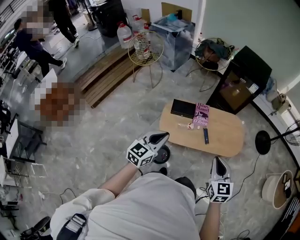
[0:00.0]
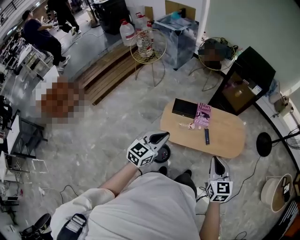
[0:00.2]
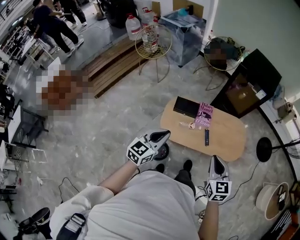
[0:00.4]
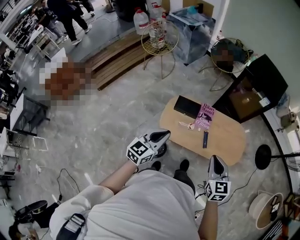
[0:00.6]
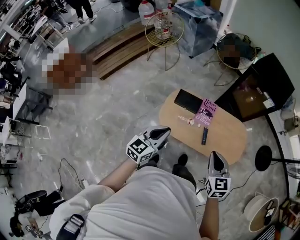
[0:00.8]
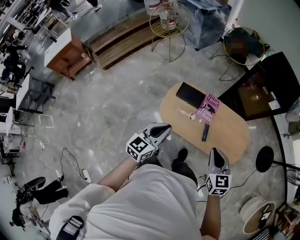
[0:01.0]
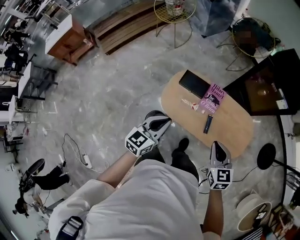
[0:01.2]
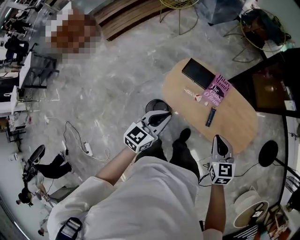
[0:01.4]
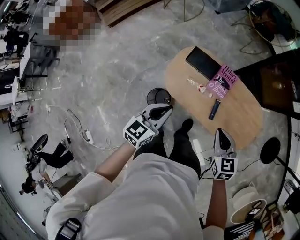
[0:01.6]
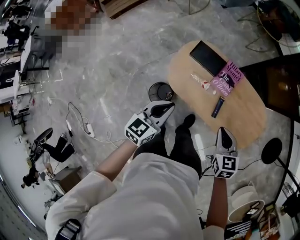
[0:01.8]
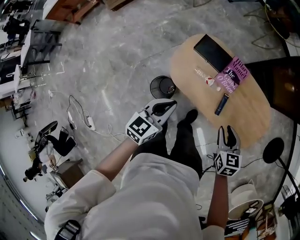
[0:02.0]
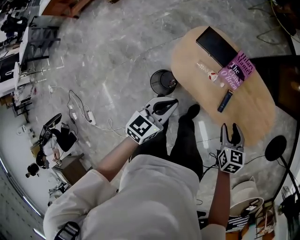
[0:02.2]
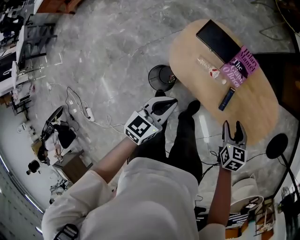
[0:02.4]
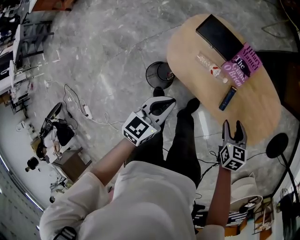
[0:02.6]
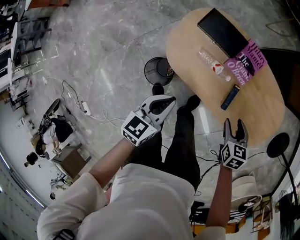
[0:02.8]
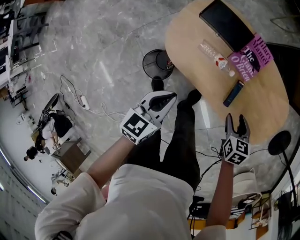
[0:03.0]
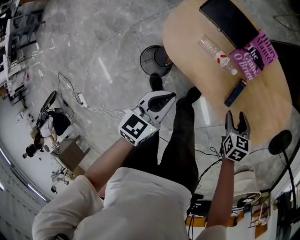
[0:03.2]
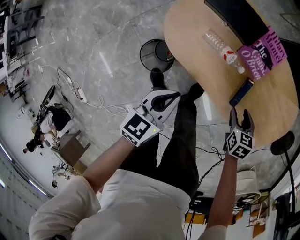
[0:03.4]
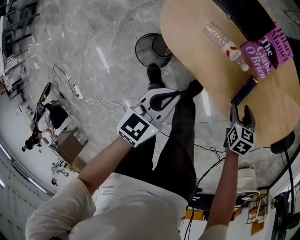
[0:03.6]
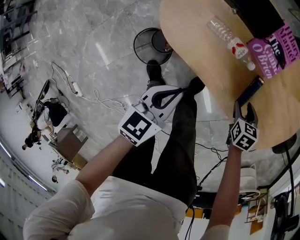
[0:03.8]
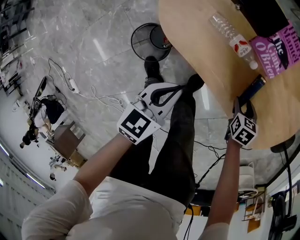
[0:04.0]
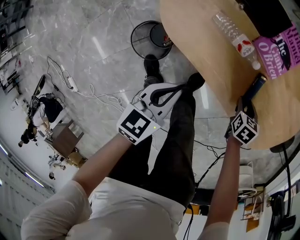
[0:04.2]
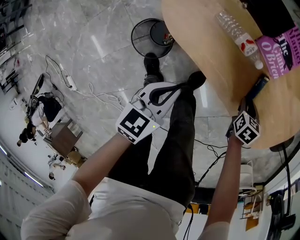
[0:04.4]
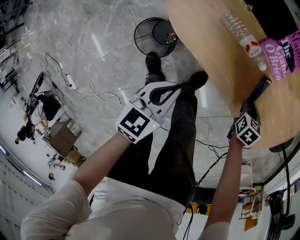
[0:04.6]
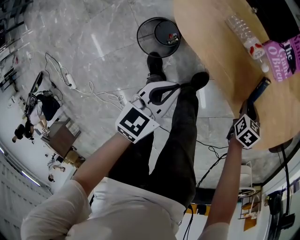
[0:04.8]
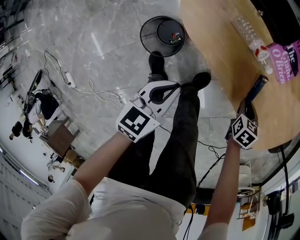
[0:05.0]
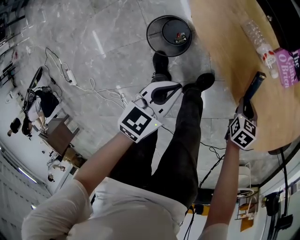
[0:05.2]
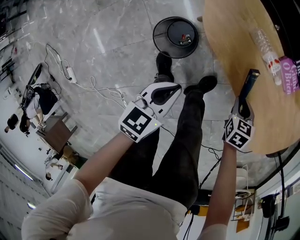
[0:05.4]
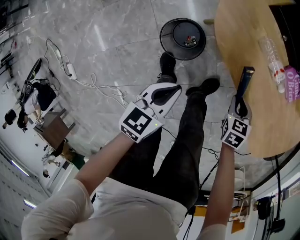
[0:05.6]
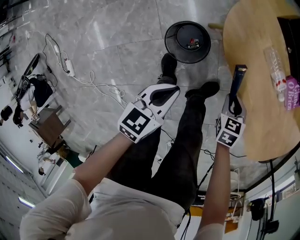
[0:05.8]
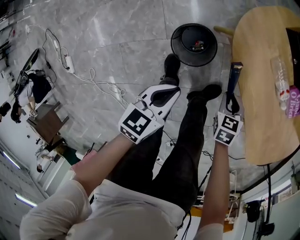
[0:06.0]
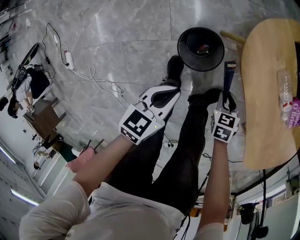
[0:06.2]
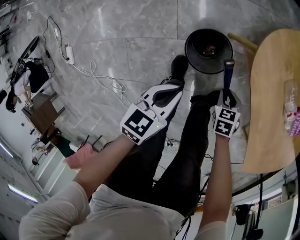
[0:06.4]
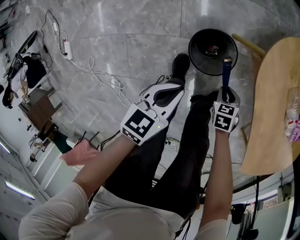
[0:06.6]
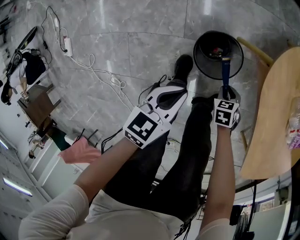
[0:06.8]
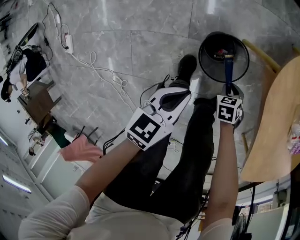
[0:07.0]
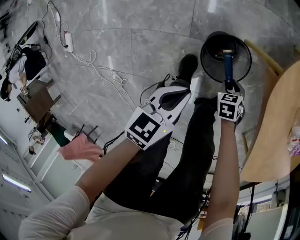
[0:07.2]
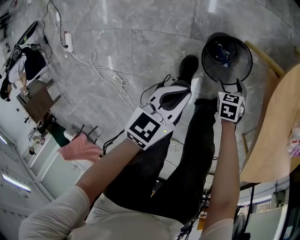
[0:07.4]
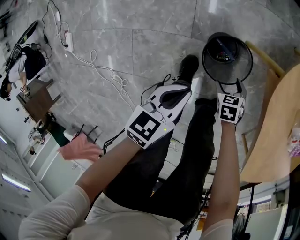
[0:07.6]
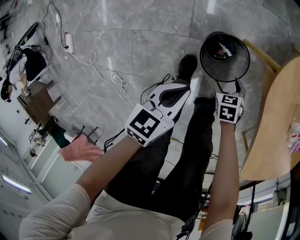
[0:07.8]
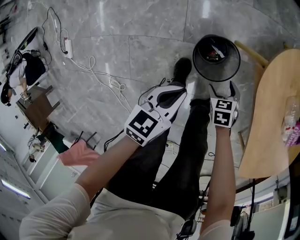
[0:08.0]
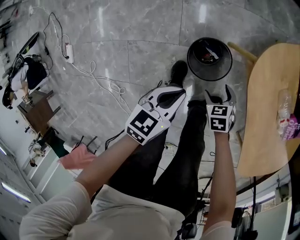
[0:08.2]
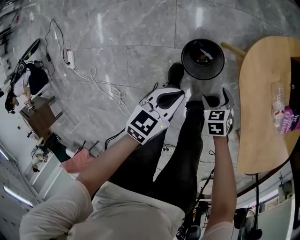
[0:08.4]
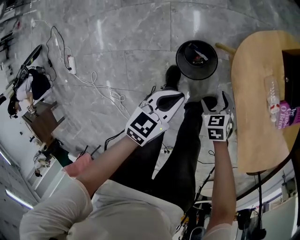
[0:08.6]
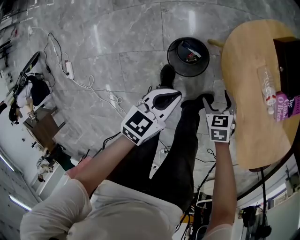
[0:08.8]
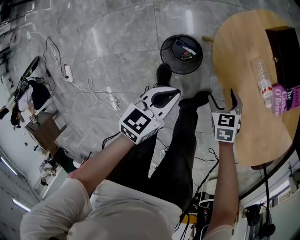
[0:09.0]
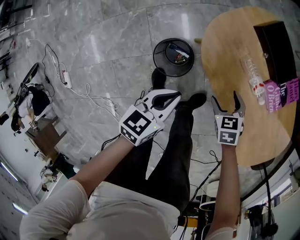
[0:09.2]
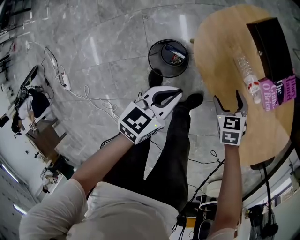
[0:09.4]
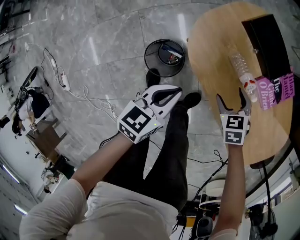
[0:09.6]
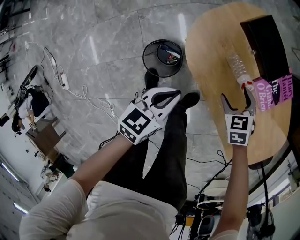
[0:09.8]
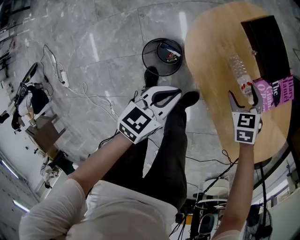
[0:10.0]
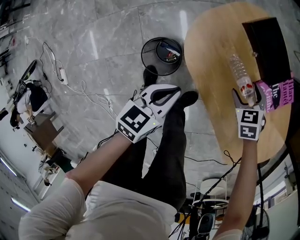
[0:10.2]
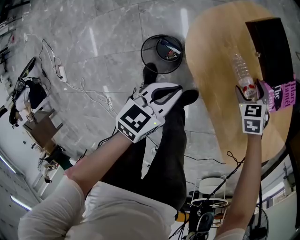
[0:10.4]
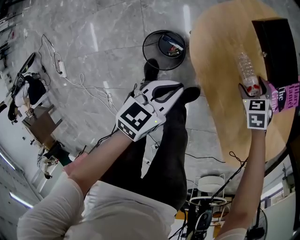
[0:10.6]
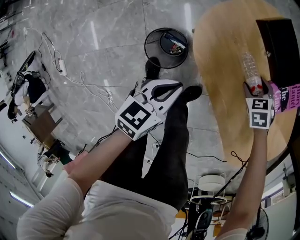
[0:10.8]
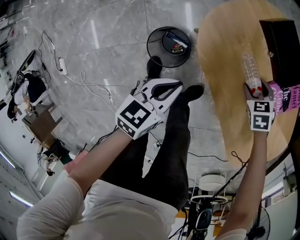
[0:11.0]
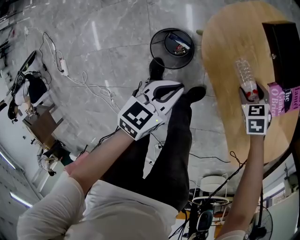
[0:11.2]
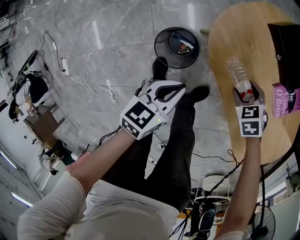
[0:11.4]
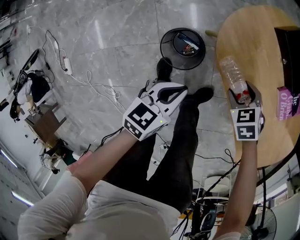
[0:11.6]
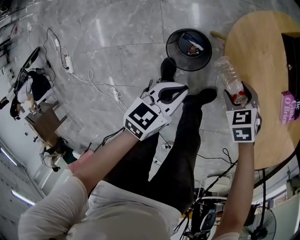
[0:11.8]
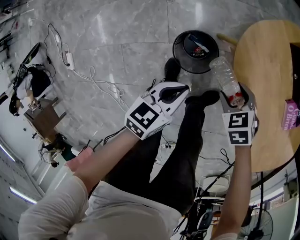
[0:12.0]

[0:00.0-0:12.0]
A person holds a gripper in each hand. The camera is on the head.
0:00.0 to 0:01.6: The left gripper is displaced downward by some 15 cm, and turns by roughly 30 degrees. The right gripper changes place by roughly 30 cm, and swivels some 40 degrees.
0:01.6 to 0:03.0: The grippers both shift downward by roughly 25 cm. The right gripper swivels about 20 degrees, and opens its fingers.
0:03.0 to 0:04.4: Both grippers move downward, about 20 cm.
0:04.4 to 0:06.0: The right gripper changes place by about 30 cm, and turns by roughly 30 degrees, while the left gripper ends up some 20 cm from where it was.
0:06.0 to 0:07.6: The left gripper moves some 15 cm, while the right gripper shifts by about 25 cm, turns by approximately 20 degrees, and opens its fingers.
0:07.6 to 0:09.0: The right gripper moves upward and to the right, approximately 25 cm; the left gripper travels to the right and upward by some 20 cm.
0:09.0 to 0:10.4: The left gripper heads to the right and forward, covering about 10 cm, while the right gripper heads to the right and forward, covering some 20 cm.
0:10.4 to 0:12.0: The left gripper shifts by about 15 cm. The right gripper changes place by some 25 cm.

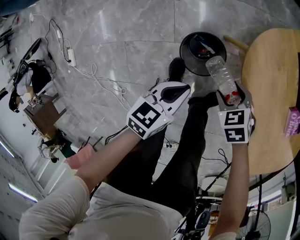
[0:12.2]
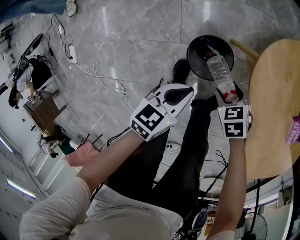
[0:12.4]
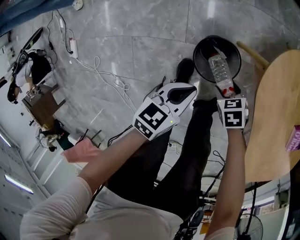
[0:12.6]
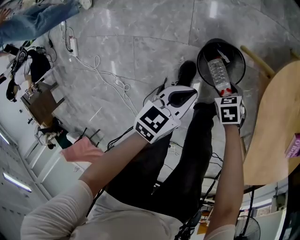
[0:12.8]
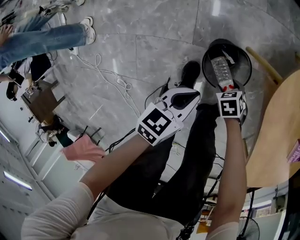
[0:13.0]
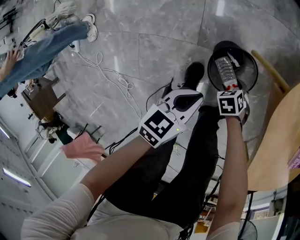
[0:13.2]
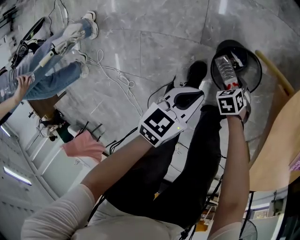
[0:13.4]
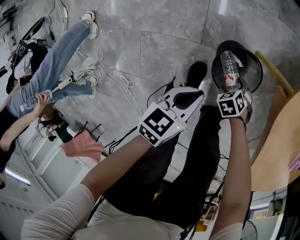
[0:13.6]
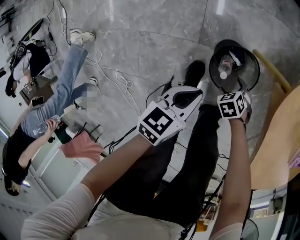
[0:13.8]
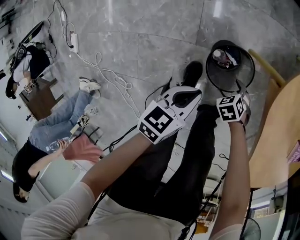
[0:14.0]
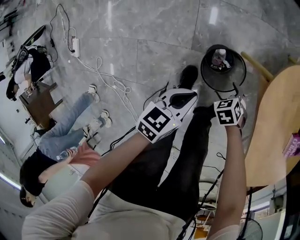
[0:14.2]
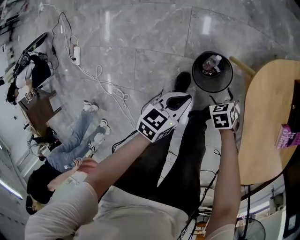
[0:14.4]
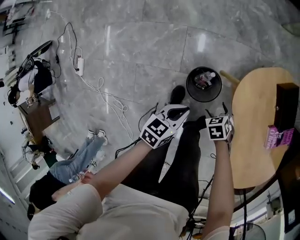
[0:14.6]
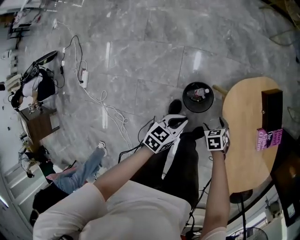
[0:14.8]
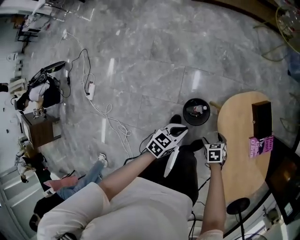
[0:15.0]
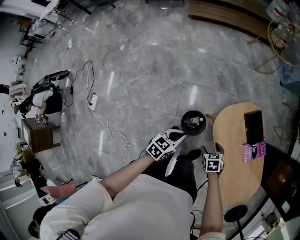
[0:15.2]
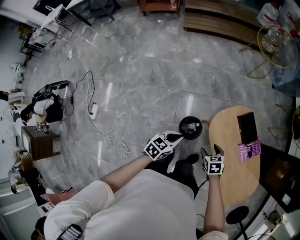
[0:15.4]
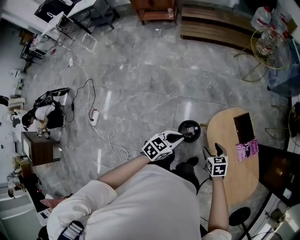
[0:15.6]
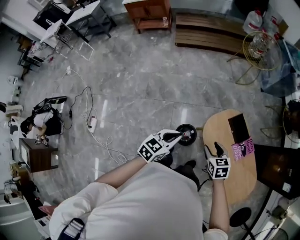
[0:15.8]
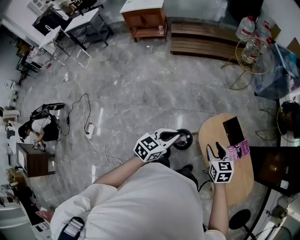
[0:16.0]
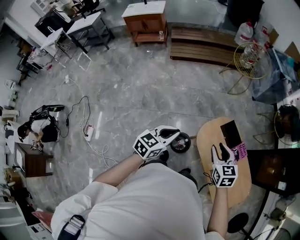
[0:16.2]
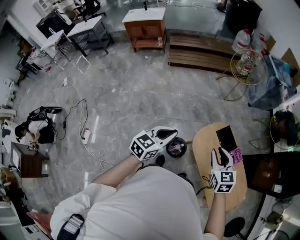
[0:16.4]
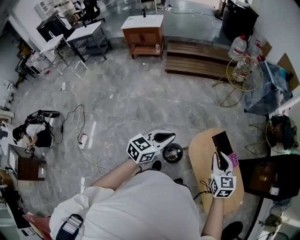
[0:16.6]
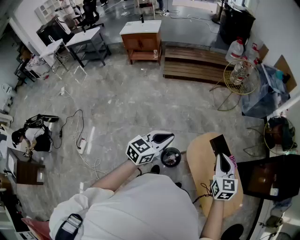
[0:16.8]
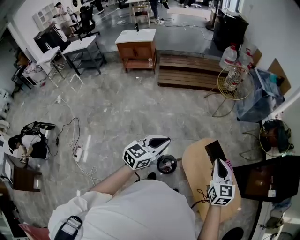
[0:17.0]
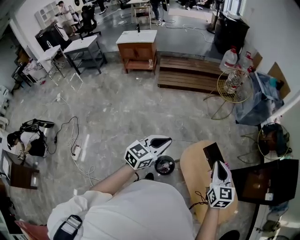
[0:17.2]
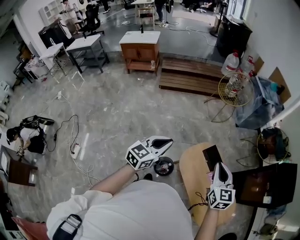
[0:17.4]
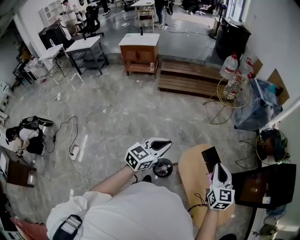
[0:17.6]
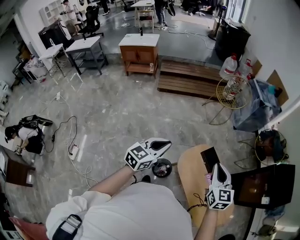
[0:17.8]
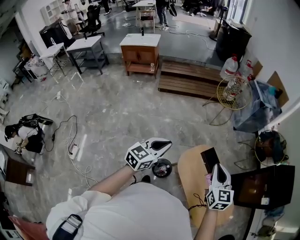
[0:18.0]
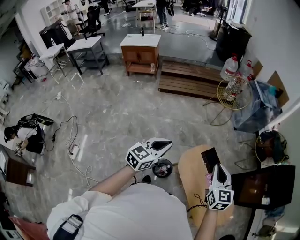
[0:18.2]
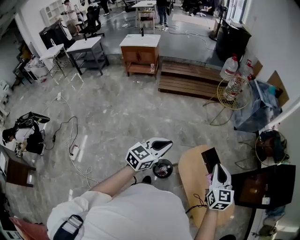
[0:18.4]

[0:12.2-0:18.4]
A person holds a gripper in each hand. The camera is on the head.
0:12.2 to 0:13.8: The left gripper changes place by approximately 15 cm, while the right gripper travels downward by approximately 20 cm.
0:13.8 to 0:15.4: Both grippers travel together upward, roughly 50 cm. The left gripper rotates roughly 20 degrees. The right gripper swivels about 40 degrees.
0:15.4 to 0:16.8: The two grippers go approximately 35 cm upward. The right gripper tips its fingers upward by some 40 degrees, and closes. The left gripper rotates some 30 degrees.
0:16.8 to 0:18.4: The right gripper shifts by about 5 cm.

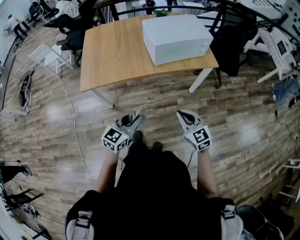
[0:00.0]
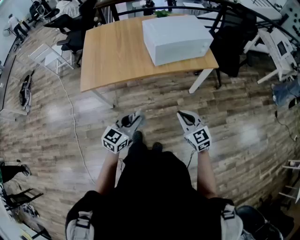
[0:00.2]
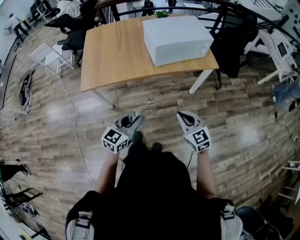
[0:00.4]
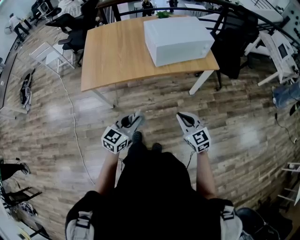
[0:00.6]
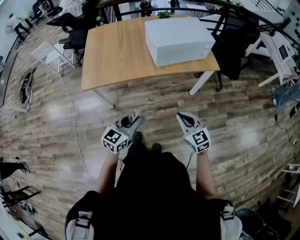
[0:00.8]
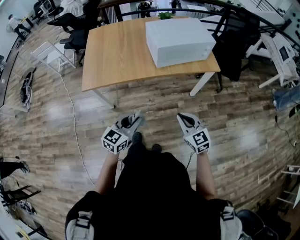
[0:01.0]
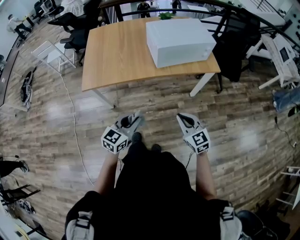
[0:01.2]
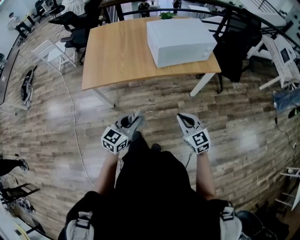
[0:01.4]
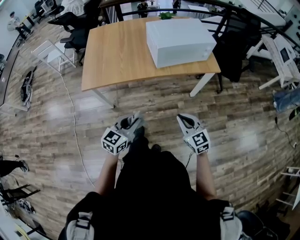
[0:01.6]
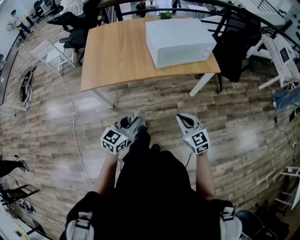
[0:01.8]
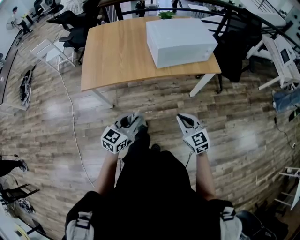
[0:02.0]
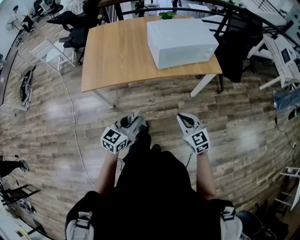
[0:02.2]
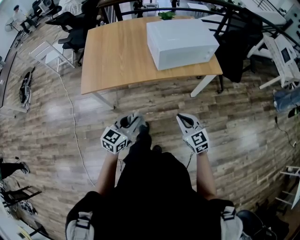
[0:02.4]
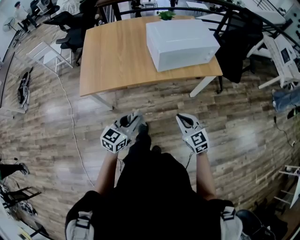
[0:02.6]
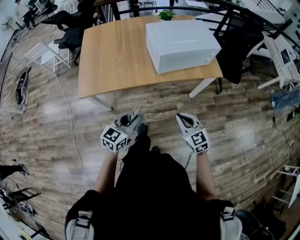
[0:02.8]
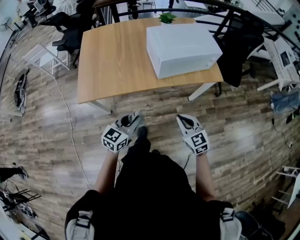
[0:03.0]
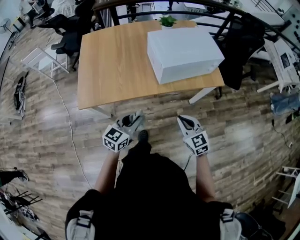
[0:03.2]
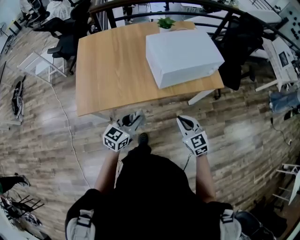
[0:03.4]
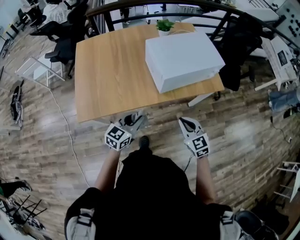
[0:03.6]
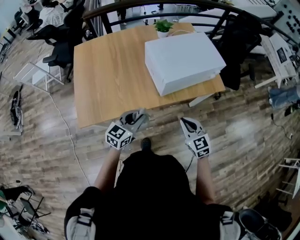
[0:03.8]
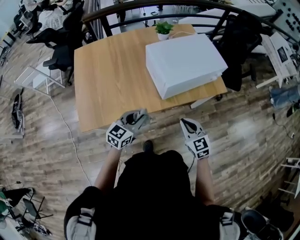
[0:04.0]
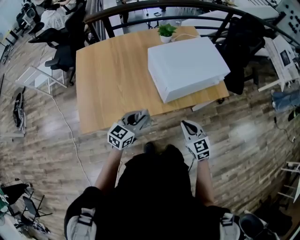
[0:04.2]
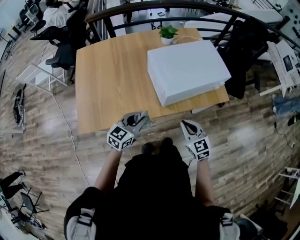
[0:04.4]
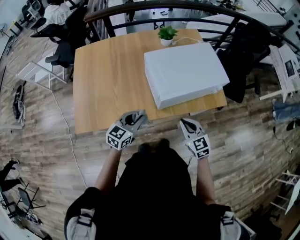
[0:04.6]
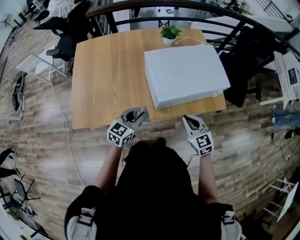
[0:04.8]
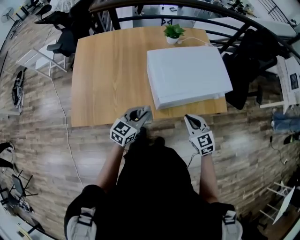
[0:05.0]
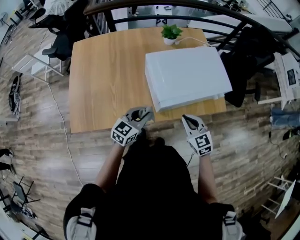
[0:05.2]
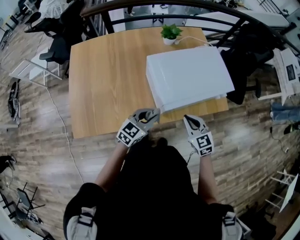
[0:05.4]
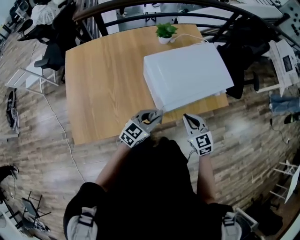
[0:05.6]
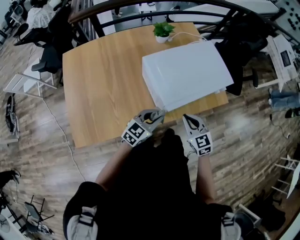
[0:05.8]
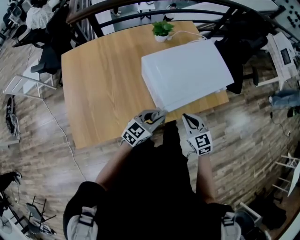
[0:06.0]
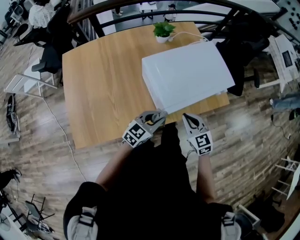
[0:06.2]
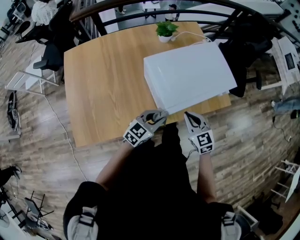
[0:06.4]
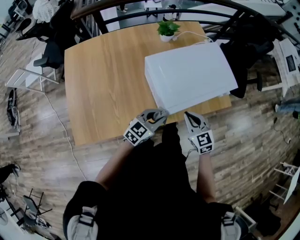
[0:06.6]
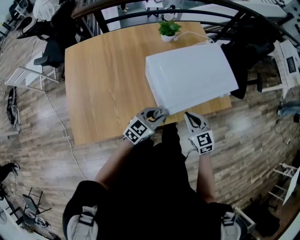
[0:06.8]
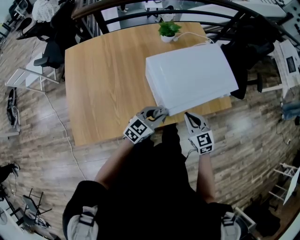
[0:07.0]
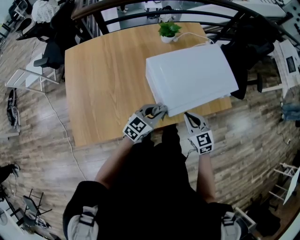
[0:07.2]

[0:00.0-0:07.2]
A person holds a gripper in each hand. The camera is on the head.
0:00.0 to 0:01.4: Neither gripper changes place.
0:01.4 to 0:02.8: Both grippers move forward, some 10 cm.
0:02.8 to 0:04.4: The two grippers go approximately 25 cm forward.
0:04.4 to 0:05.8: The right gripper is displaced forward by about 10 cm. Meanwhile the left gripper travels forward and to the right by some 10 cm.
0:05.8 to 0:07.2: There are only small adjustments of the grippers.
